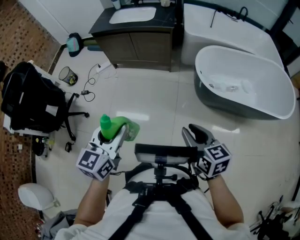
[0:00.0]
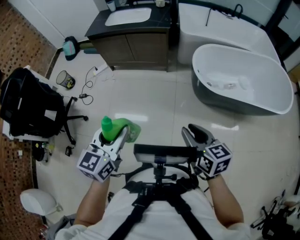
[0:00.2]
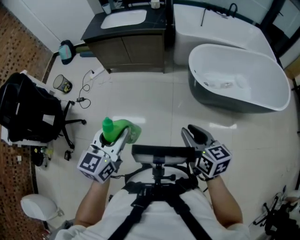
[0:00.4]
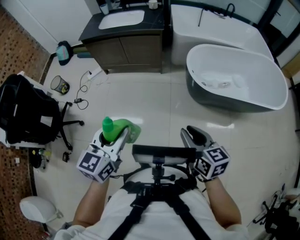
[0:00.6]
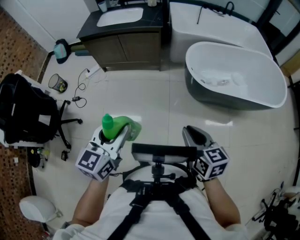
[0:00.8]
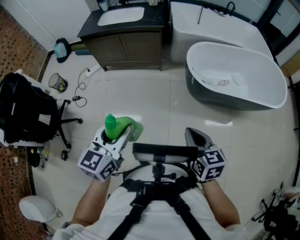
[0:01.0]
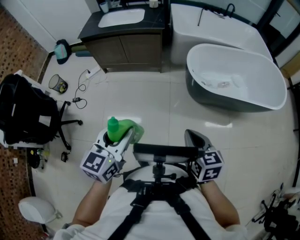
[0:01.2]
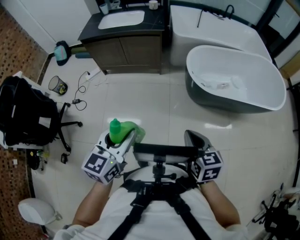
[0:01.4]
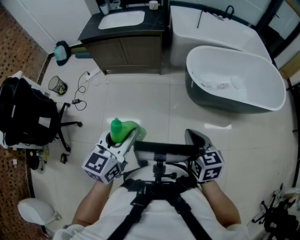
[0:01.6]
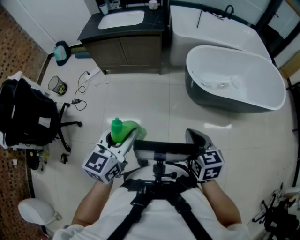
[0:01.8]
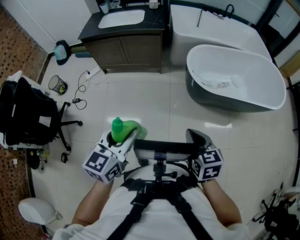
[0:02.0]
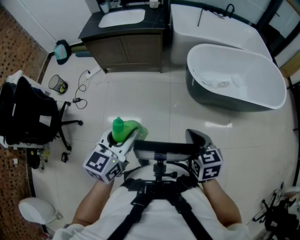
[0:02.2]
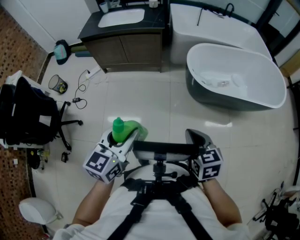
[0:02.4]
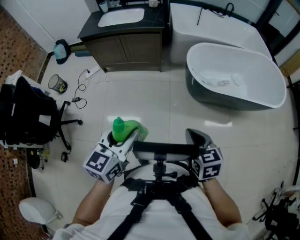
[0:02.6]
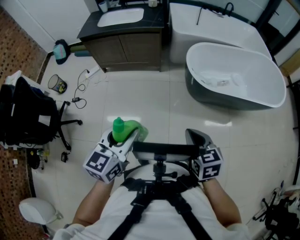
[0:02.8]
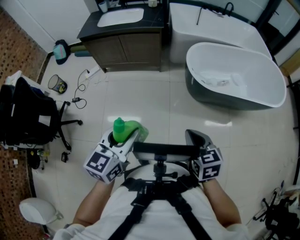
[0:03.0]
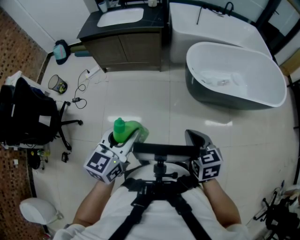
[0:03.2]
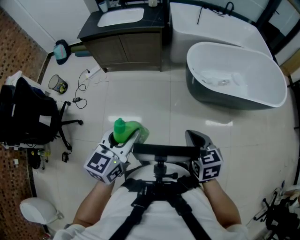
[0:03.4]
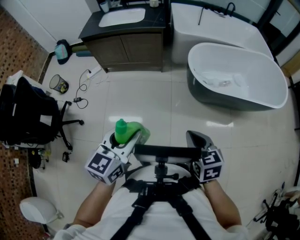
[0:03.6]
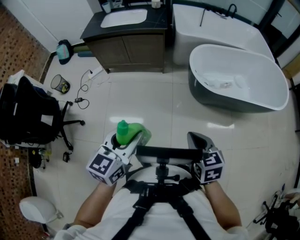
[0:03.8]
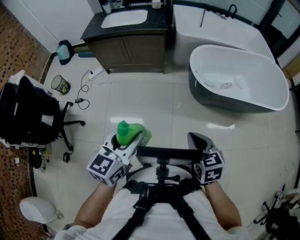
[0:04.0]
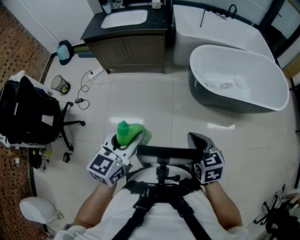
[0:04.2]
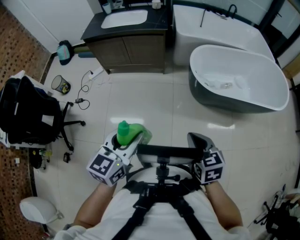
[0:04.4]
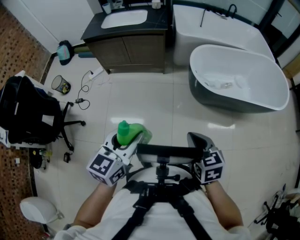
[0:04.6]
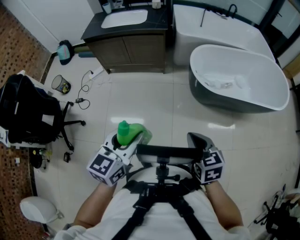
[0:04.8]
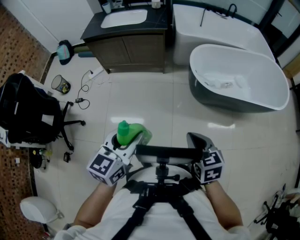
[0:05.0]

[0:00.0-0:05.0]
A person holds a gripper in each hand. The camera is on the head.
0:00.0 to 0:01.6: The right gripper closes.
0:01.6 to 0:03.4: The grippers move only a little.
0:03.4 to 0:05.0: Both grippers stay put.

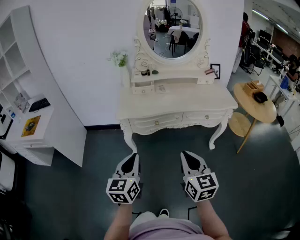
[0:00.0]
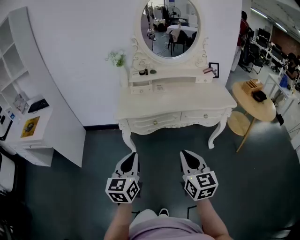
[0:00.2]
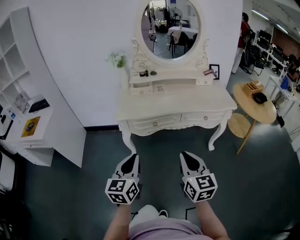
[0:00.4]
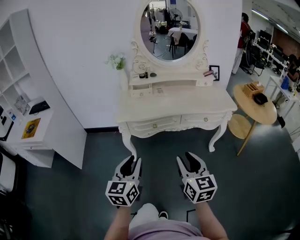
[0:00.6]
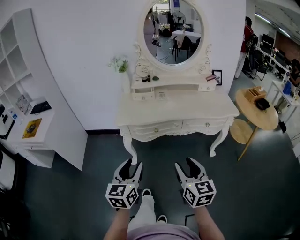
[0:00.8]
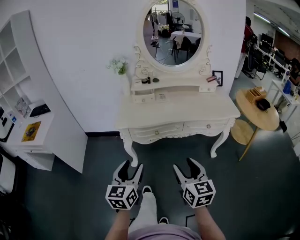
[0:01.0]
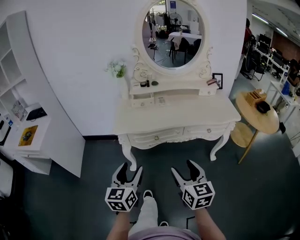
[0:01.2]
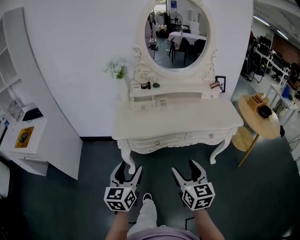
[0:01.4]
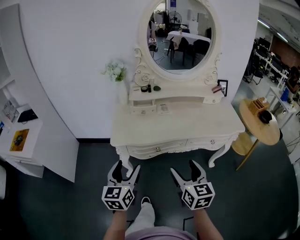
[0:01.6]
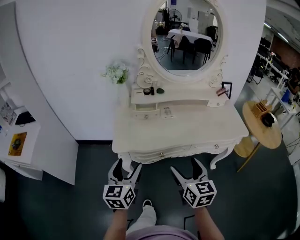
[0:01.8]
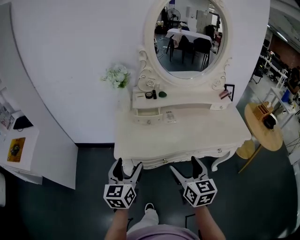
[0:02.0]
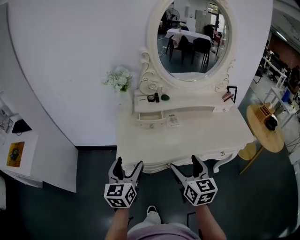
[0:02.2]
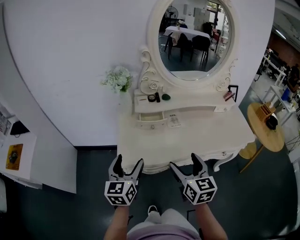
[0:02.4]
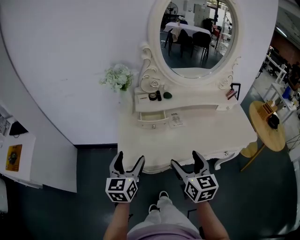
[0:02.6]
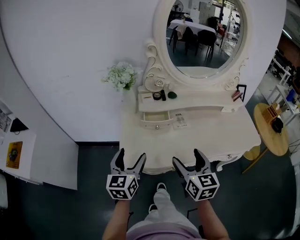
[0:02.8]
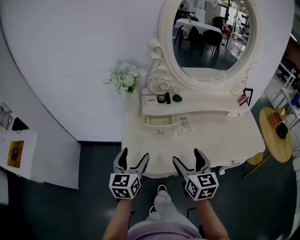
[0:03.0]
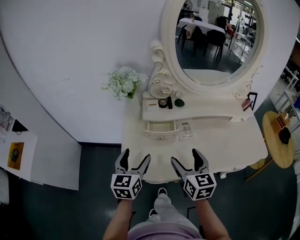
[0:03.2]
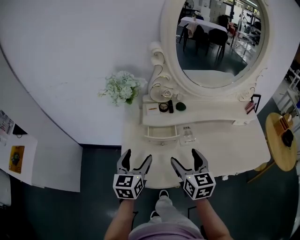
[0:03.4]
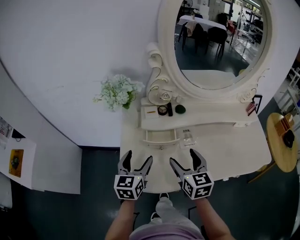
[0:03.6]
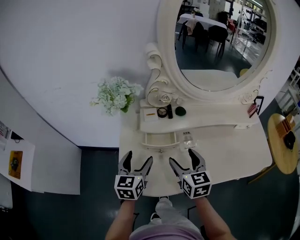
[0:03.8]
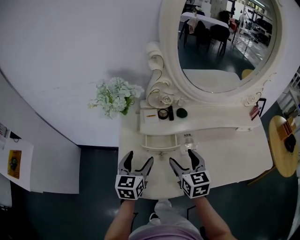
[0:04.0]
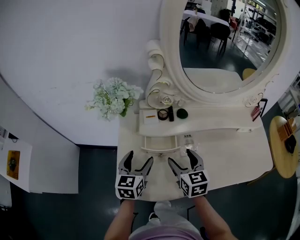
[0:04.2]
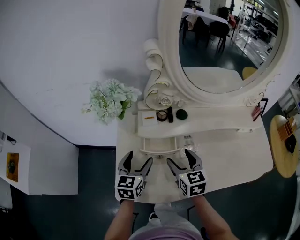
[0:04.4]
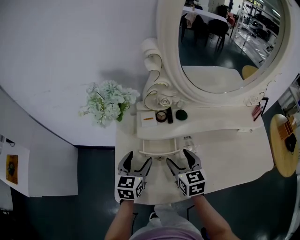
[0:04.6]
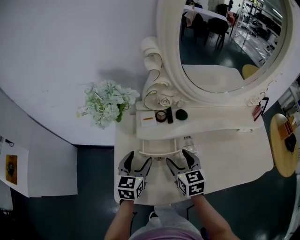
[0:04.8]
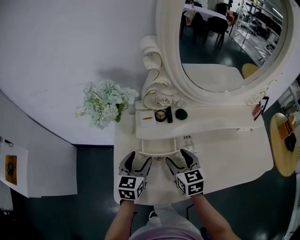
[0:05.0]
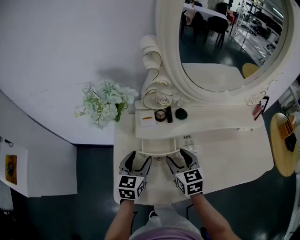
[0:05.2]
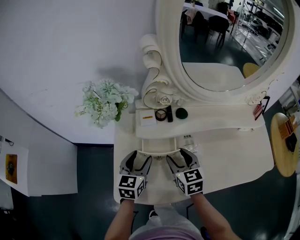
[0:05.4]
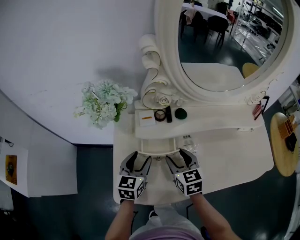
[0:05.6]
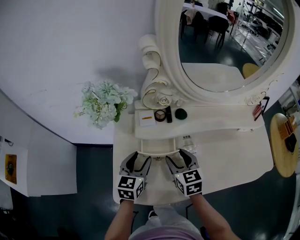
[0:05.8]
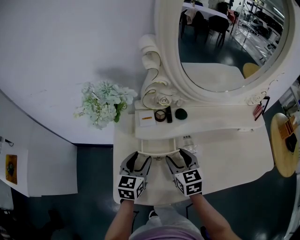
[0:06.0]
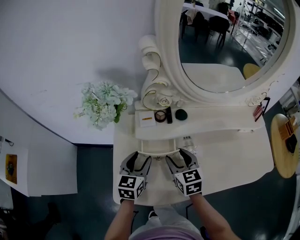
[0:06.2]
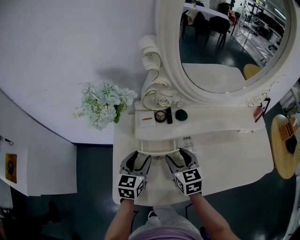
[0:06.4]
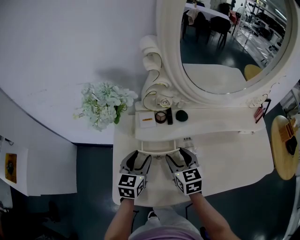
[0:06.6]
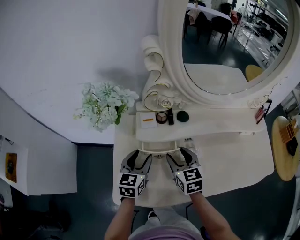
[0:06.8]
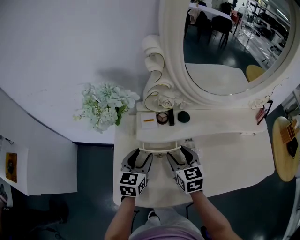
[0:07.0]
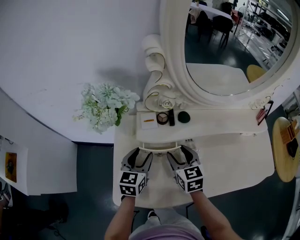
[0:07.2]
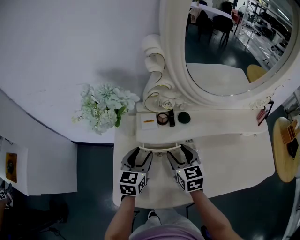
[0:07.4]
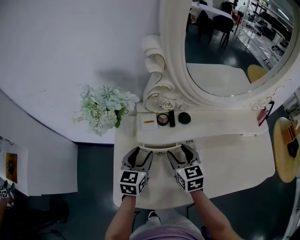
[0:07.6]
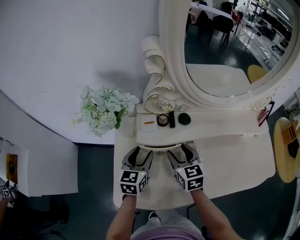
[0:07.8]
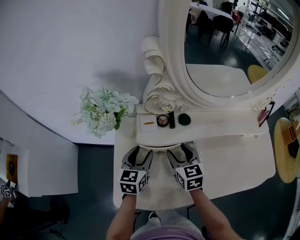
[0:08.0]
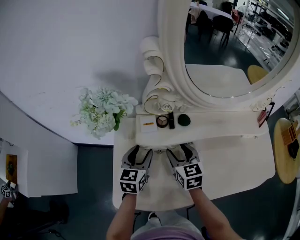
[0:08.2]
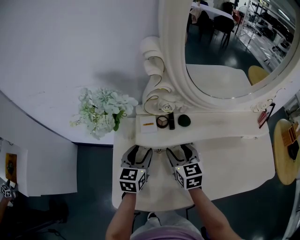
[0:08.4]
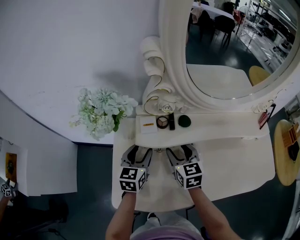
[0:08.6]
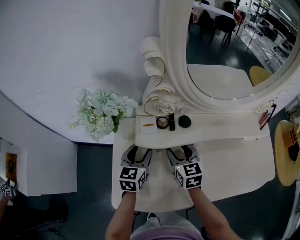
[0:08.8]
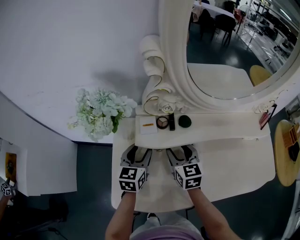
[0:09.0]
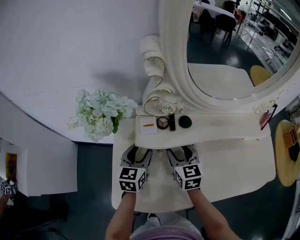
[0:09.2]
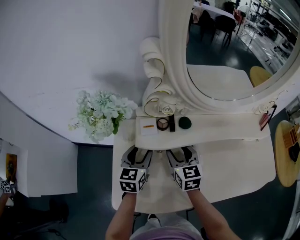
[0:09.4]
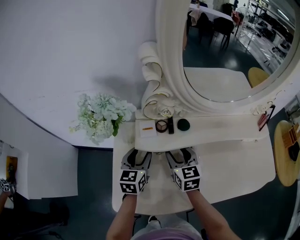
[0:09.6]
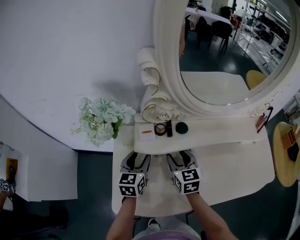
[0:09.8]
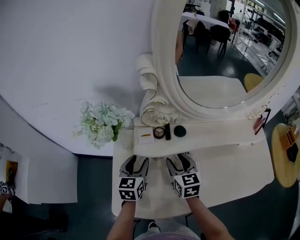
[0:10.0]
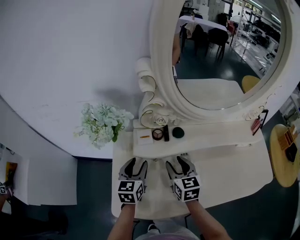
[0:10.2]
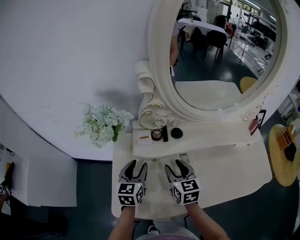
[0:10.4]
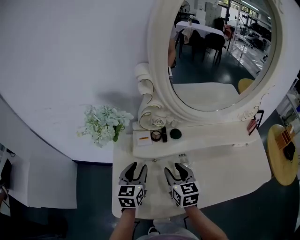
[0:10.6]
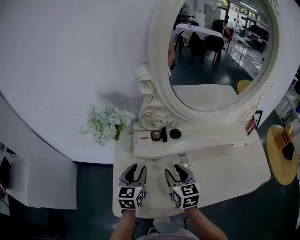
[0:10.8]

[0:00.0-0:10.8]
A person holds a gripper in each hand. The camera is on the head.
0:00.0 to 0:01.6: The two grippers go about 20 cm forward. The right gripper opens its fingers. Meanwhile the left gripper opens.
0:01.6 to 0:03.0: The grippers both shift forward by some 25 cm.
0:03.0 to 0:04.6: Both grippers travel together forward and downward, approximately 20 cm.
0:04.6 to 0:07.8: The grippers move only a little.
0:07.8 to 0:09.2: The grippers make only small movements.
0:09.2 to 0:10.8: Both grippers travel together backward, some 5 cm.

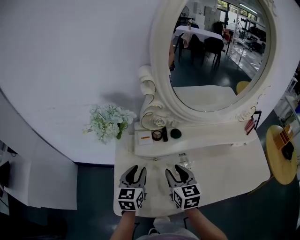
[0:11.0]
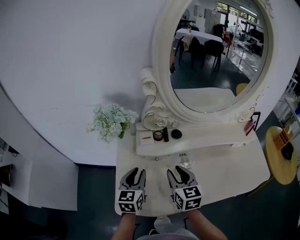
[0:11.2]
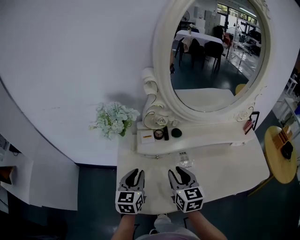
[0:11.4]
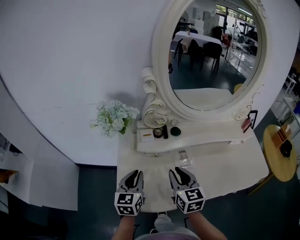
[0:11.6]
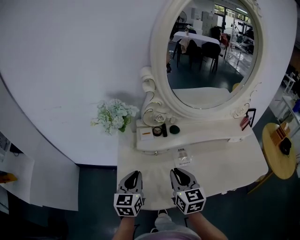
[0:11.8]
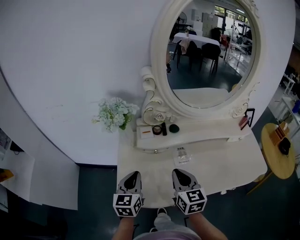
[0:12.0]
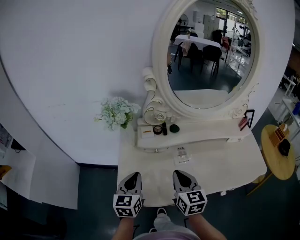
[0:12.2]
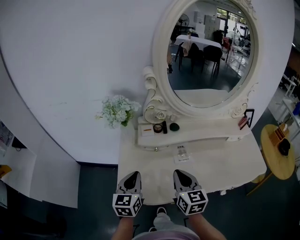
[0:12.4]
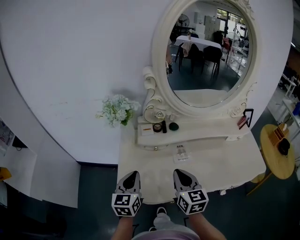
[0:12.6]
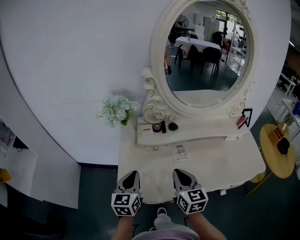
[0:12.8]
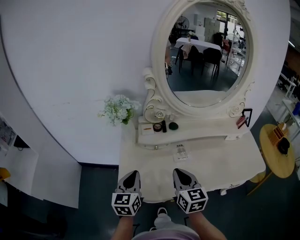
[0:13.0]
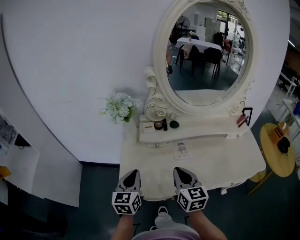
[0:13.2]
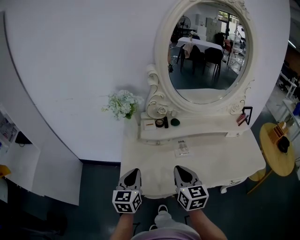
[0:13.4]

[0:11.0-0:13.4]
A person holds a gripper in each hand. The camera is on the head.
0:11.0 to 0:12.2: The two grippers go roughly 10 cm backward. The left gripper closes its fingers; the right gripper closes up.
0:12.2 to 0:13.4: The grippers stay close to where they were, moving slightly.

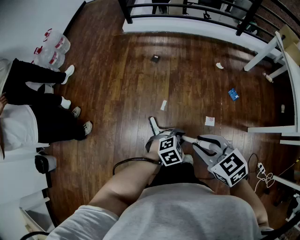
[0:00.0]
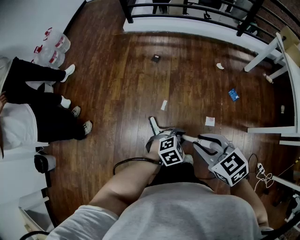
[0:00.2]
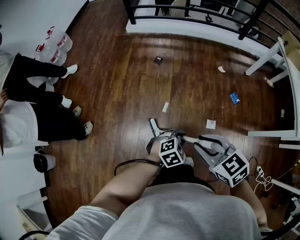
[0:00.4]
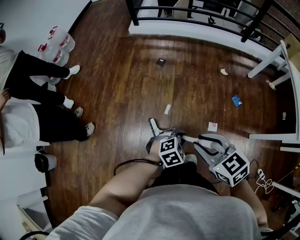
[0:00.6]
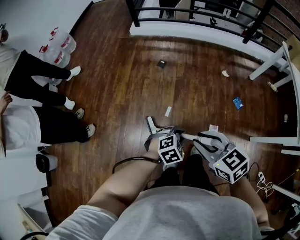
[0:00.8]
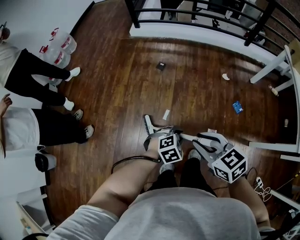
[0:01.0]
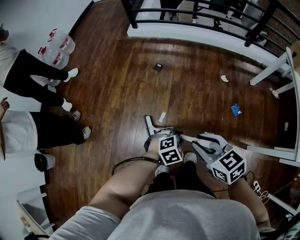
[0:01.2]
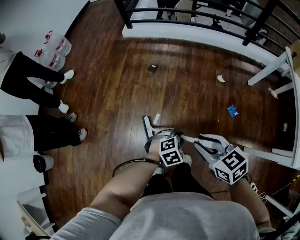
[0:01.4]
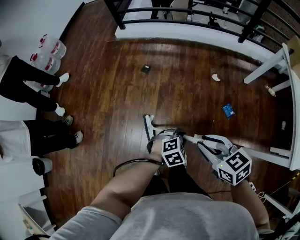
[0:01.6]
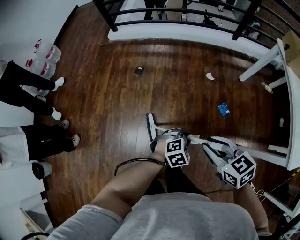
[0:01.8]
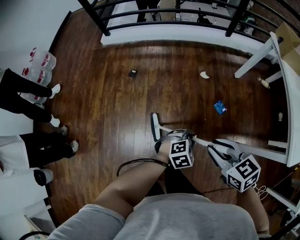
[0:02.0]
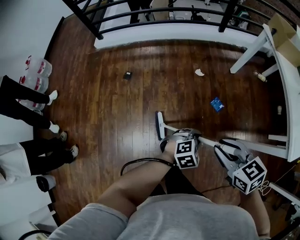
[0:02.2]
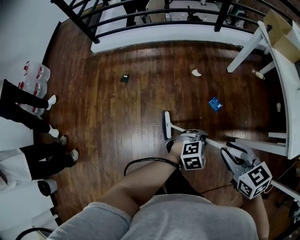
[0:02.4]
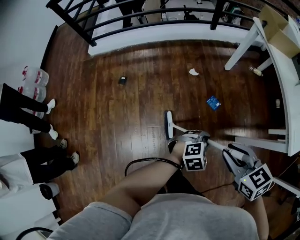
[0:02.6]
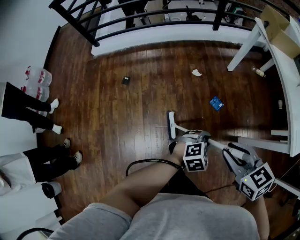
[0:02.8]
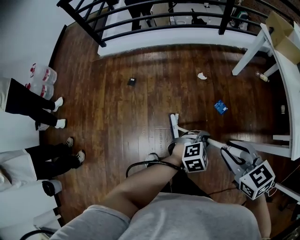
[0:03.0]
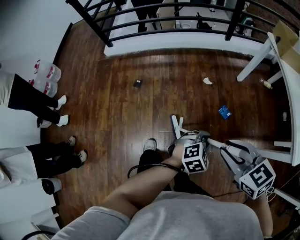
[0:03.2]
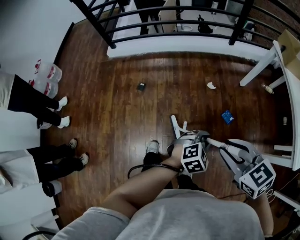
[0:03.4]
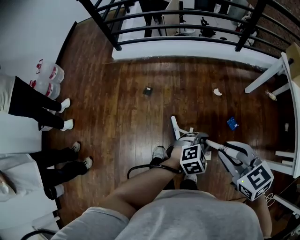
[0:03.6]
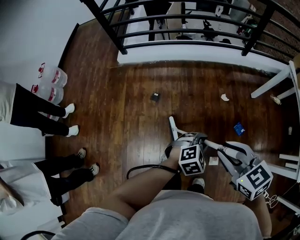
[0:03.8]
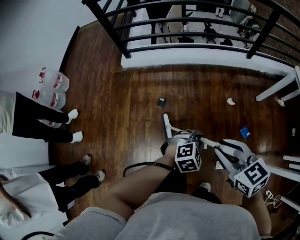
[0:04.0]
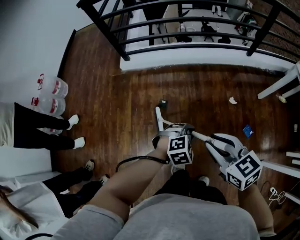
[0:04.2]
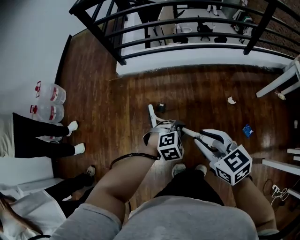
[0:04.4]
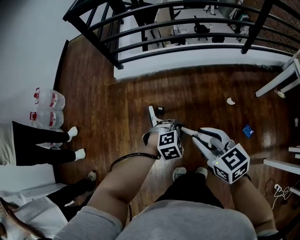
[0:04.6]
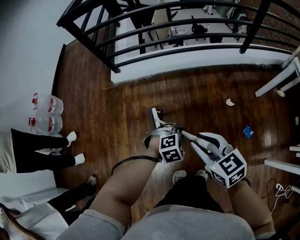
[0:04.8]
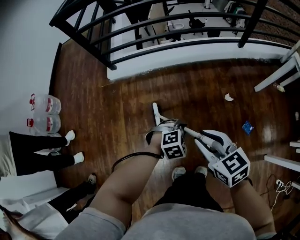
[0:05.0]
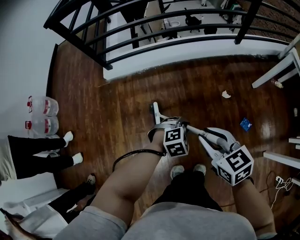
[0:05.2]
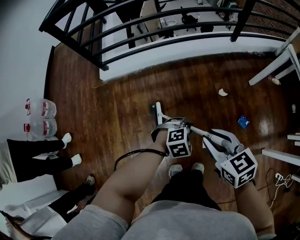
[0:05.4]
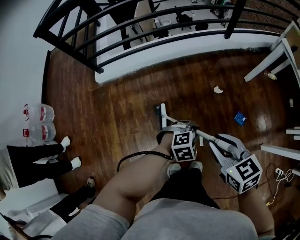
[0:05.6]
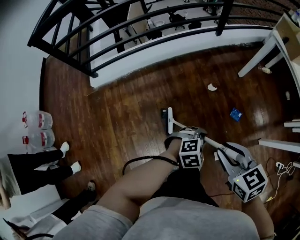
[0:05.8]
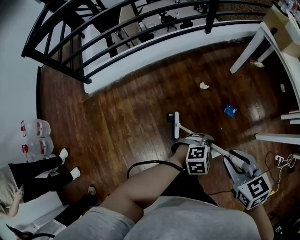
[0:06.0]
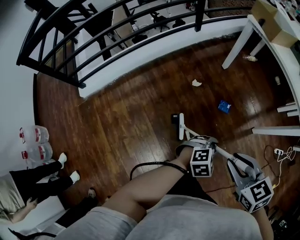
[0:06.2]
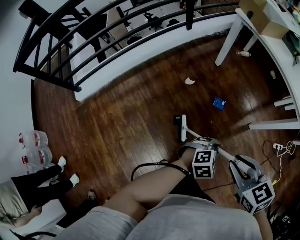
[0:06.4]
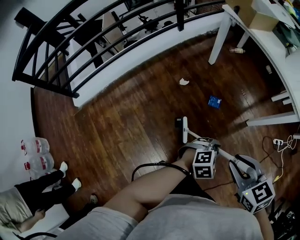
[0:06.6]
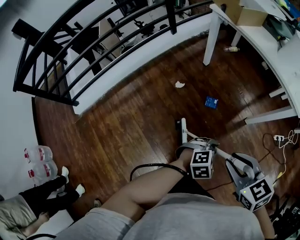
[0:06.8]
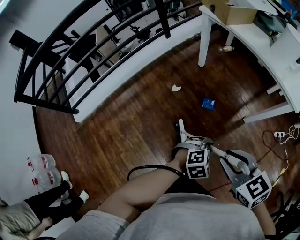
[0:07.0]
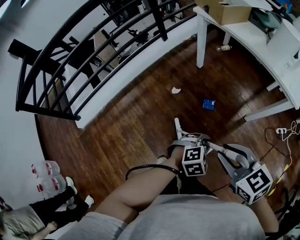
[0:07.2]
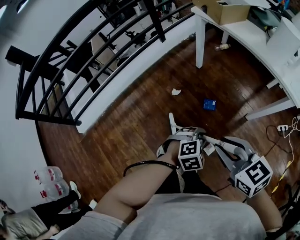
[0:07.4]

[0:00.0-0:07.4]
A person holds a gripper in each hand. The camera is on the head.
0:00.0 to 0:01.4: Both grippers travel together forward and to the right, approximately 20 cm.
0:01.4 to 0:03.0: Both grippers travel together to the right, roughly 25 cm.
0:03.0 to 0:04.4: The two grippers travel together, to the left and forward, about 50 cm.
0:04.4 to 0:06.0: The right gripper shifts by approximately 25 cm, and rotates roughly 30 degrees, while the left gripper ends up roughly 30 cm from where it was, and turns by about 30 degrees.
0:06.0 to 0:07.4: The two grippers go about 15 cm to the right and forward.
